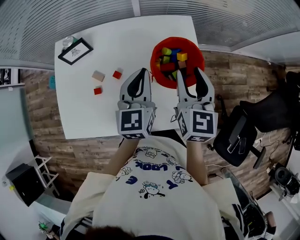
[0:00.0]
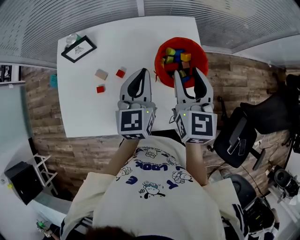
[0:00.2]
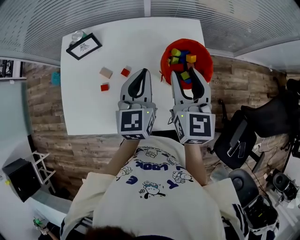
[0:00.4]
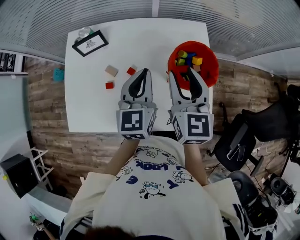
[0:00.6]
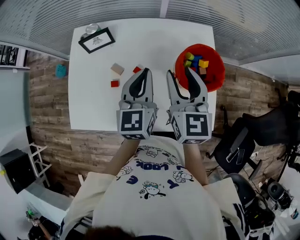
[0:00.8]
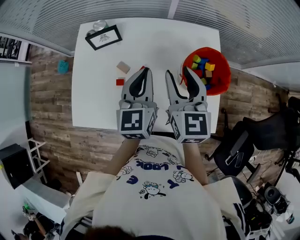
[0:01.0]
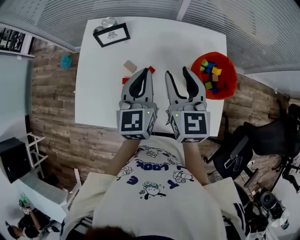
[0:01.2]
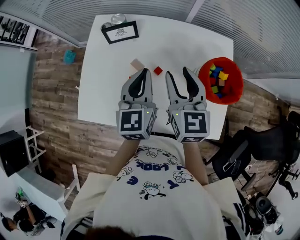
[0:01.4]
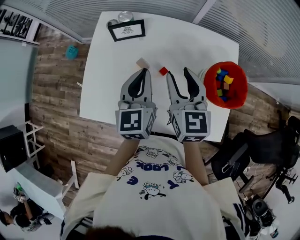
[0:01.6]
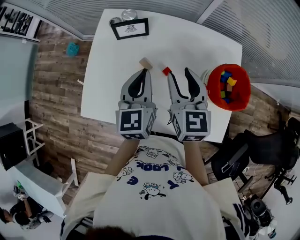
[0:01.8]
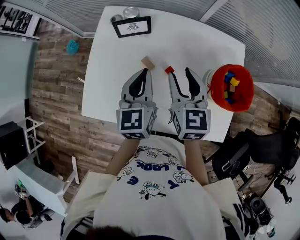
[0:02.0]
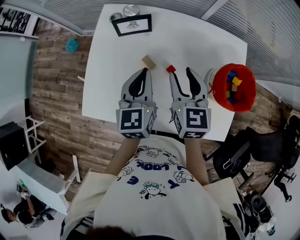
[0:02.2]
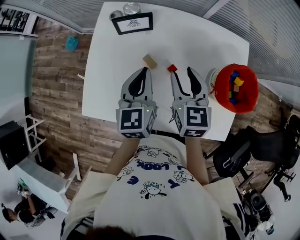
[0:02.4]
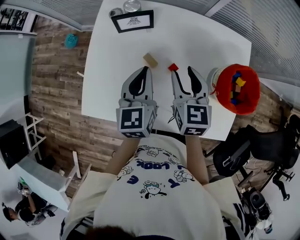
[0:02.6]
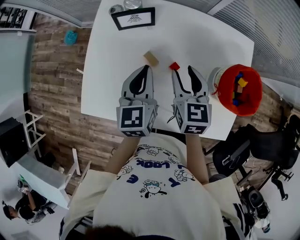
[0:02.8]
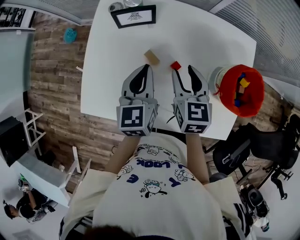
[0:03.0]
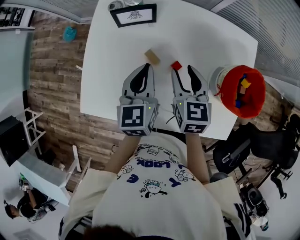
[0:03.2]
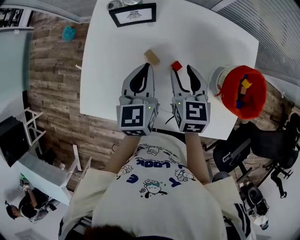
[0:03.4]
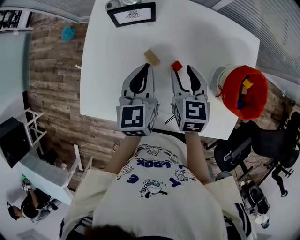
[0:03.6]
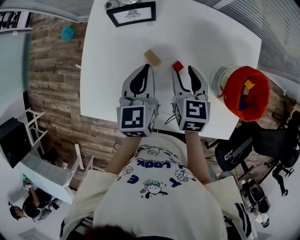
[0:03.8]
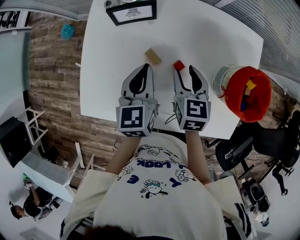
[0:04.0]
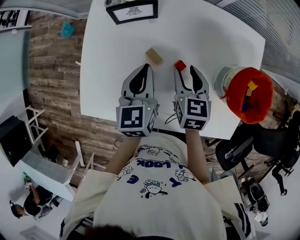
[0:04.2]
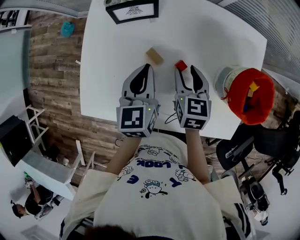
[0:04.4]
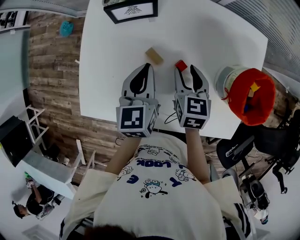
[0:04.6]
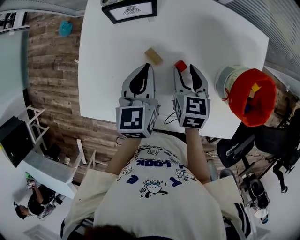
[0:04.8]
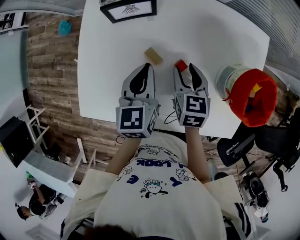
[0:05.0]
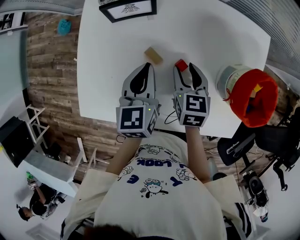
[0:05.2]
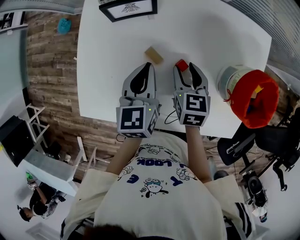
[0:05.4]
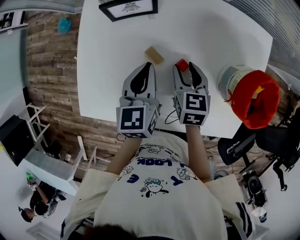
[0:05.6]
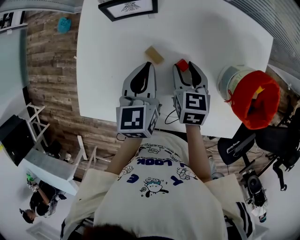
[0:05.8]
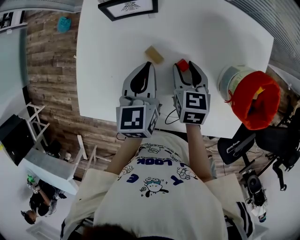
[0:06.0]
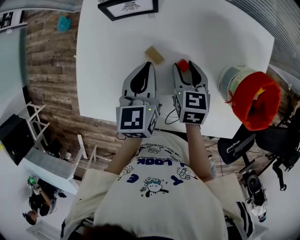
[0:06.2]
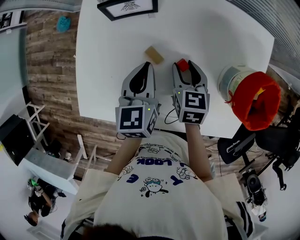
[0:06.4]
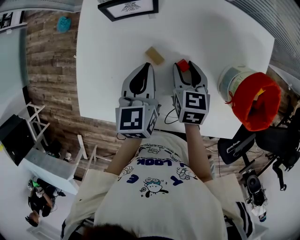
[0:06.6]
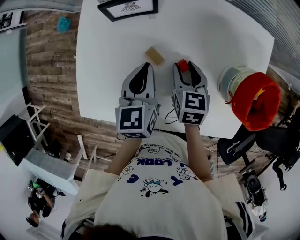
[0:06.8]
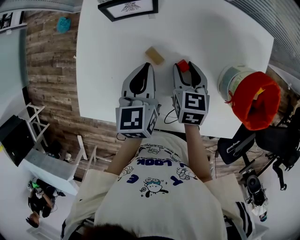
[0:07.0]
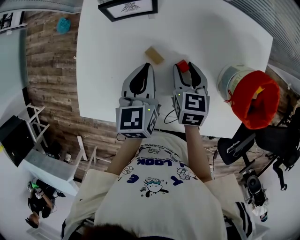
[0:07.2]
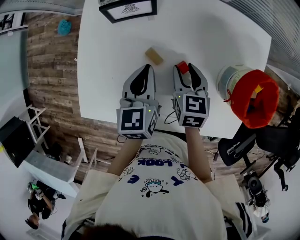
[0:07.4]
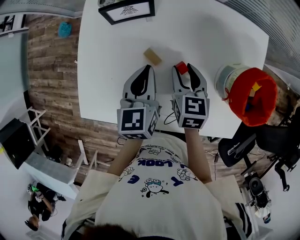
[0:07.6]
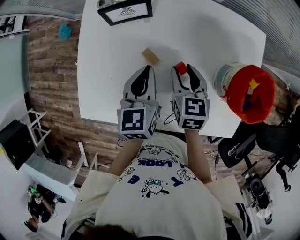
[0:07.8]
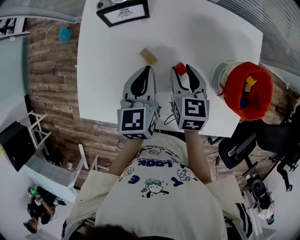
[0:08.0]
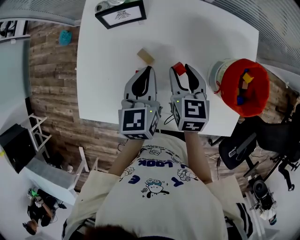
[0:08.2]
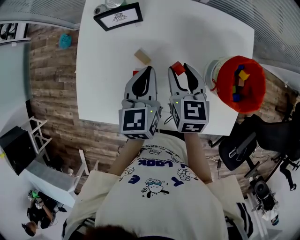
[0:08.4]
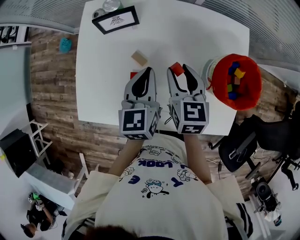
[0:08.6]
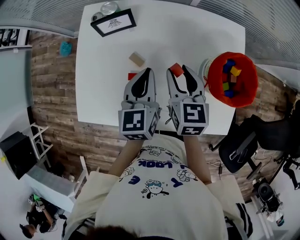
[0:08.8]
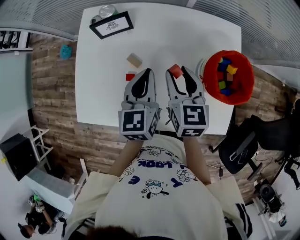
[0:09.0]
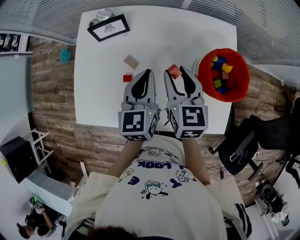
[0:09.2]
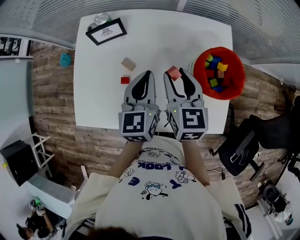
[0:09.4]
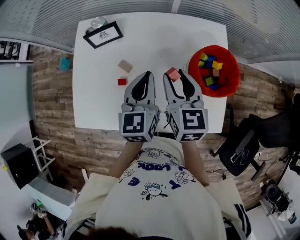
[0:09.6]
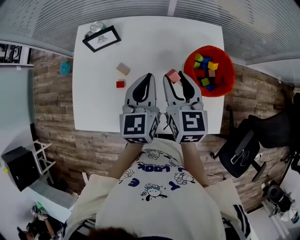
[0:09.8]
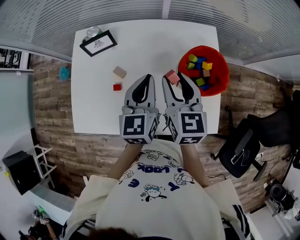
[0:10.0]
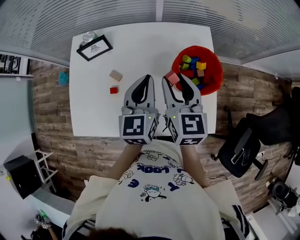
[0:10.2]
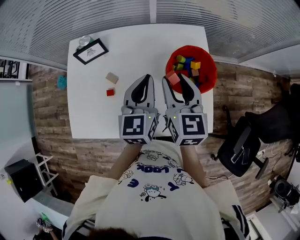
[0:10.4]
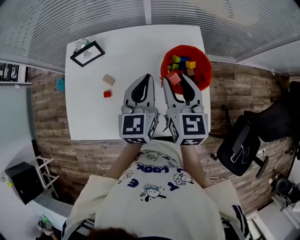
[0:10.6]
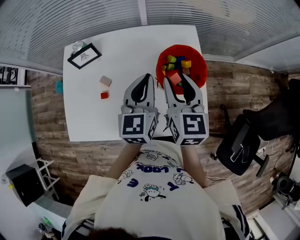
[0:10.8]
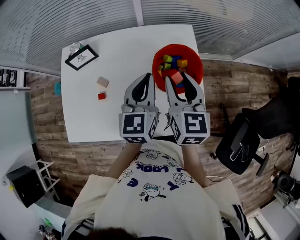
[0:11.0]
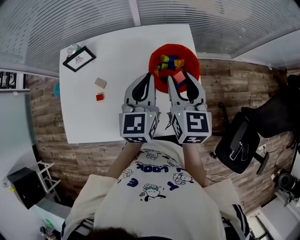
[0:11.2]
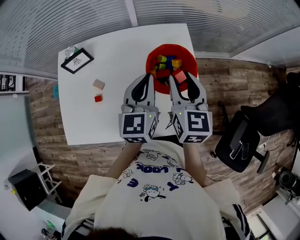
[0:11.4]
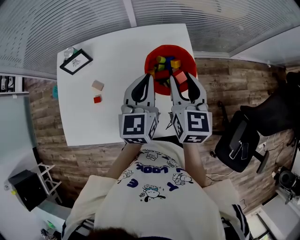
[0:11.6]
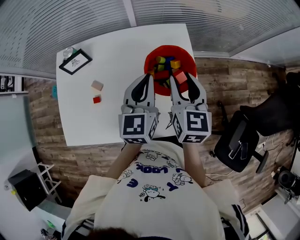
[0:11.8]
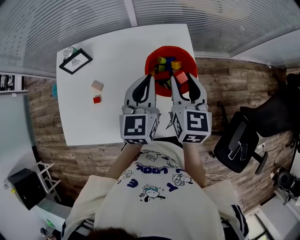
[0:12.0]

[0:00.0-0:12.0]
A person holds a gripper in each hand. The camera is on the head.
0:00.0 to 0:01.6: The grippers both shift to the left by approximately 20 cm. The right gripper rotates some 20 degrees.
0:01.6 to 0:03.0: The right gripper travels downward by some 10 cm; the left gripper heads downward, covering some 5 cm.
0:03.0 to 0:04.4: The right gripper heads downward, covering about 5 cm.
0:04.4 to 0:07.6: The grippers make only small movements.
0:07.6 to 0:09.0: The right gripper shifts about 10 cm upward. The left gripper is displaced to the right and upward by roughly 10 cm.
0:09.0 to 0:10.4: The grippers both shift to the right and upward by about 15 cm.
0:10.4 to 0:12.0: The grippers both shift to the right by some 10 cm.

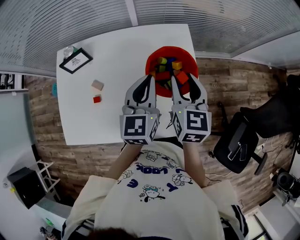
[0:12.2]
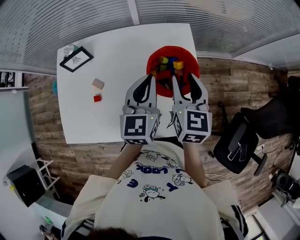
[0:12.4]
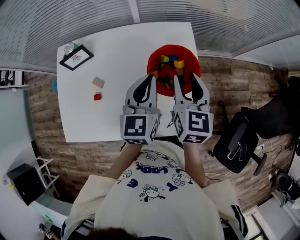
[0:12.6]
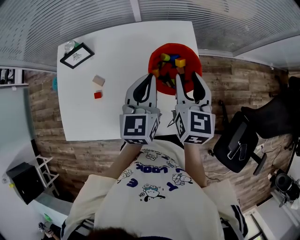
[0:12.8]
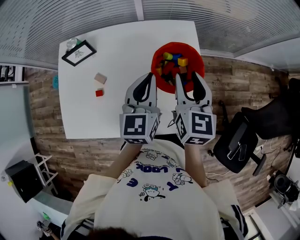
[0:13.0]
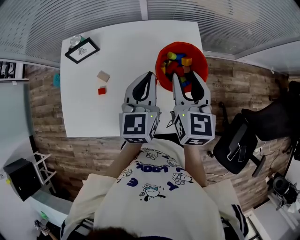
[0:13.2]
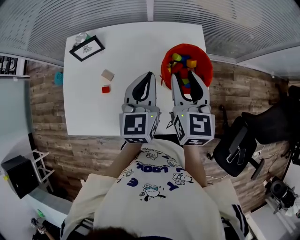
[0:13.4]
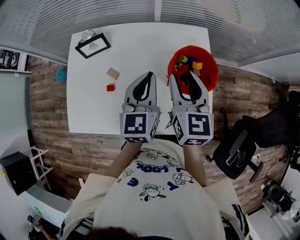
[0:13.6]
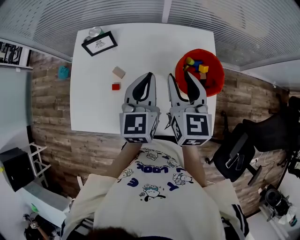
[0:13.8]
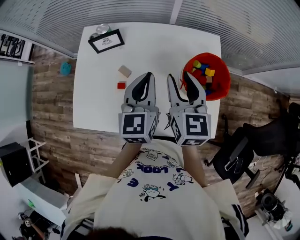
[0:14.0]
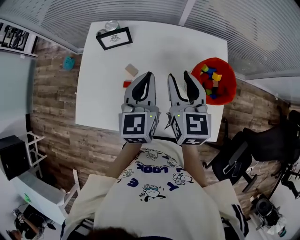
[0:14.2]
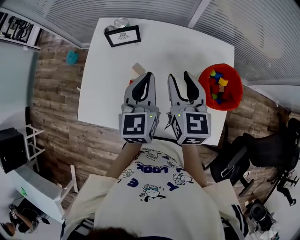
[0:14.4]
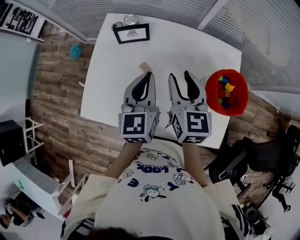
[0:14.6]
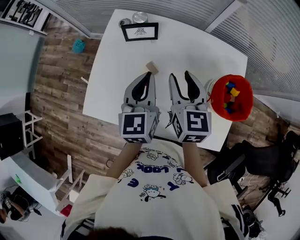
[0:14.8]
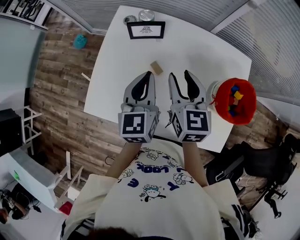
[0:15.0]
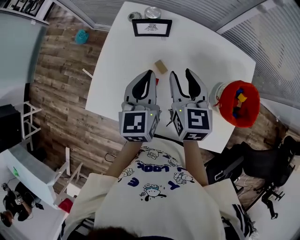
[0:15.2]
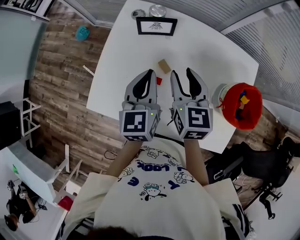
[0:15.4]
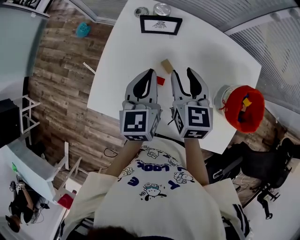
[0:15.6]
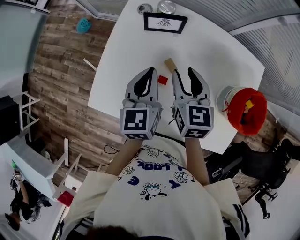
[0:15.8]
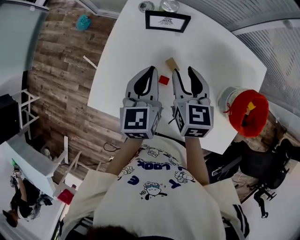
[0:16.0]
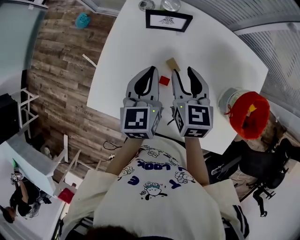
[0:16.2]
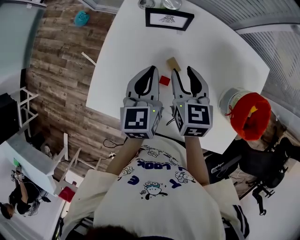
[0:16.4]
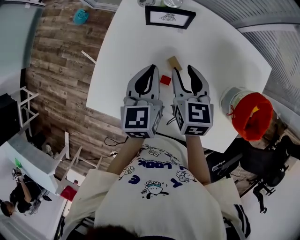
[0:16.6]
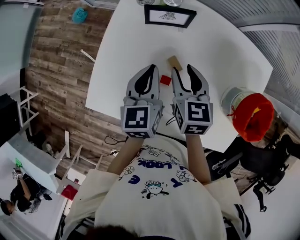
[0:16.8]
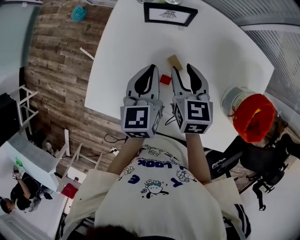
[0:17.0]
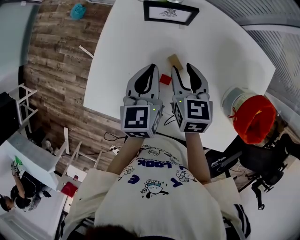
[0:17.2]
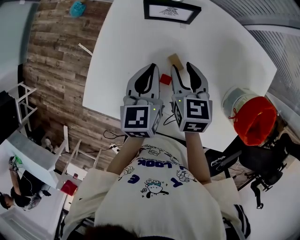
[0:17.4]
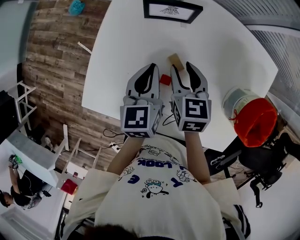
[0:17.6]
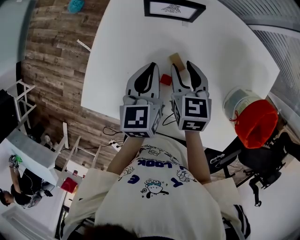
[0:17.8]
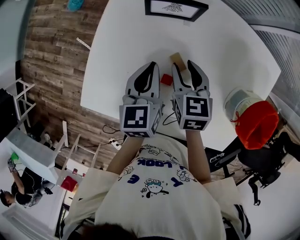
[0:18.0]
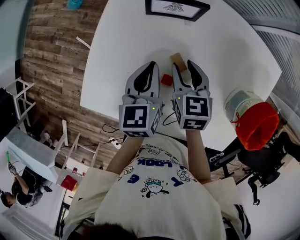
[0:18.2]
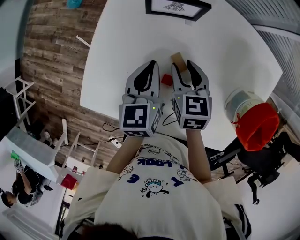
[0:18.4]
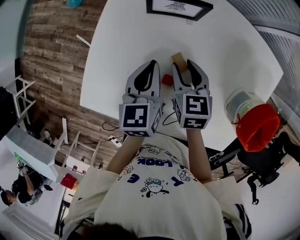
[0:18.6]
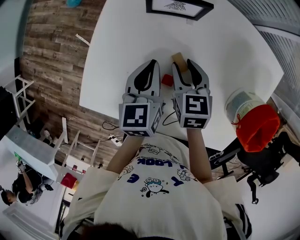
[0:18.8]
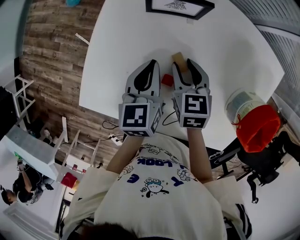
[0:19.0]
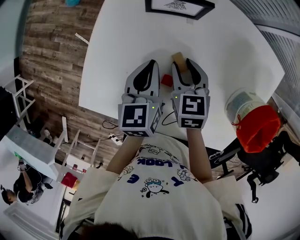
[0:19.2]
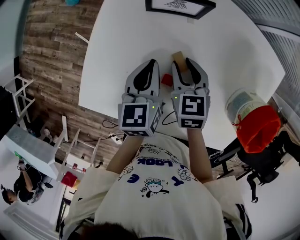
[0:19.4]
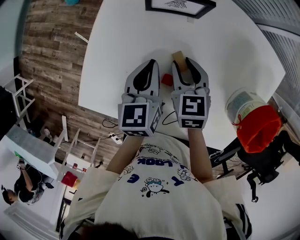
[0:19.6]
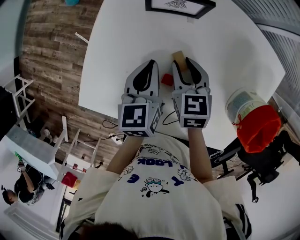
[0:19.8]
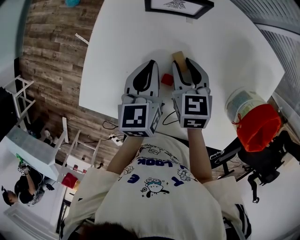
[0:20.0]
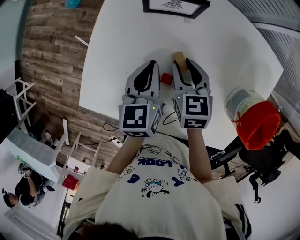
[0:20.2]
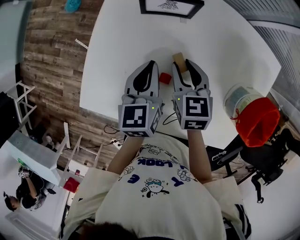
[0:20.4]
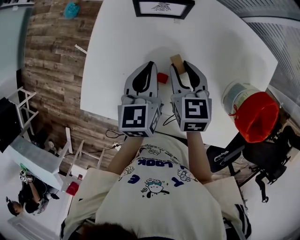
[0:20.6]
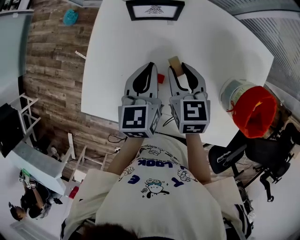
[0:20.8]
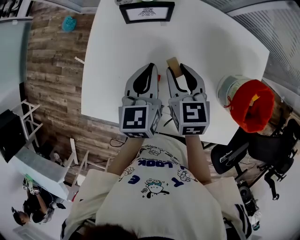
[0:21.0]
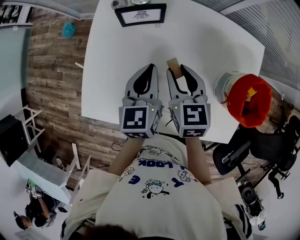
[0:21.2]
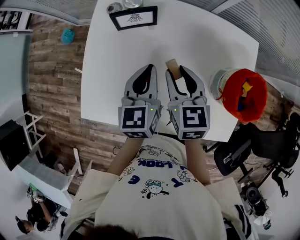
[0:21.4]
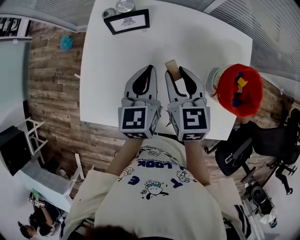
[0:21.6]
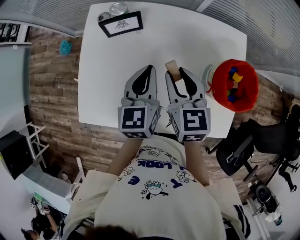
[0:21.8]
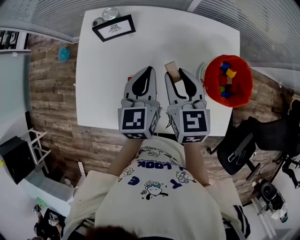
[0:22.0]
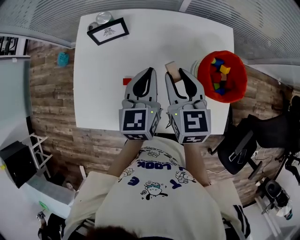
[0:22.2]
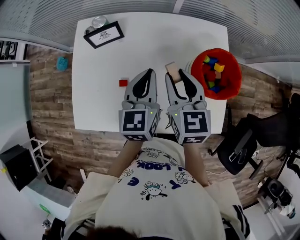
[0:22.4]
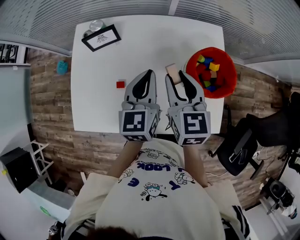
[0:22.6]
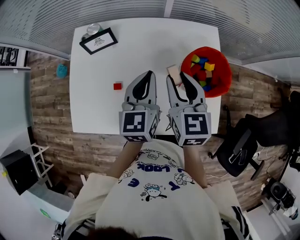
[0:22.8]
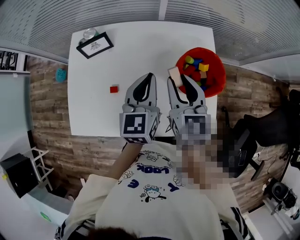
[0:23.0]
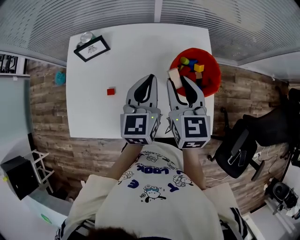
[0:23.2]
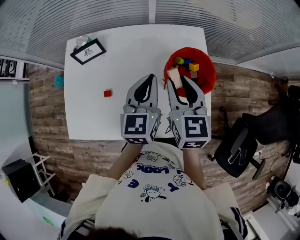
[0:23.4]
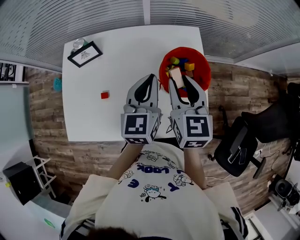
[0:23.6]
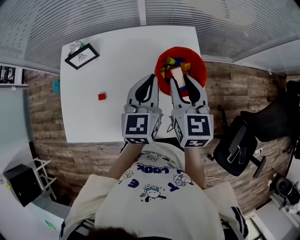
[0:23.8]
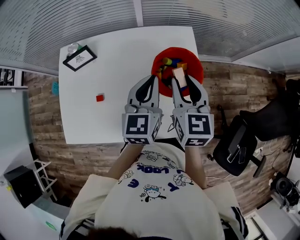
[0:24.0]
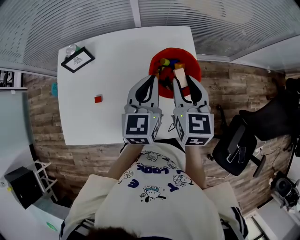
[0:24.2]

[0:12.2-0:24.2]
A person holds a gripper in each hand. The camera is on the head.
0:12.2 to 0:13.8: Both grippers travel together to the left, approximately 10 cm.
0:13.8 to 0:15.2: The two grippers go approximately 20 cm to the left.
0:15.2 to 0:16.6: Both grippers travel together downward, approximately 5 cm.
0:16.6 to 0:18.2: The two grippers go approximately 5 cm downward.
0:18.2 to 0:19.8: The grippers stay close to where they were, moving slightly.
0:19.8 to 0:21.2: The left gripper shifts approximately 10 cm upward and to the right. Meanwhile the right gripper moves upward, approximately 10 cm.
0:21.2 to 0:22.6: Both grippers travel together to the right and upward, about 15 cm.
0:22.6 to 0:24.2: The two grippers go roughly 15 cm to the right.
